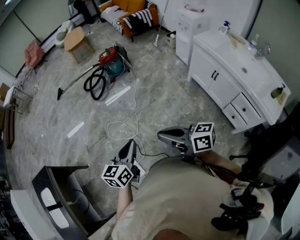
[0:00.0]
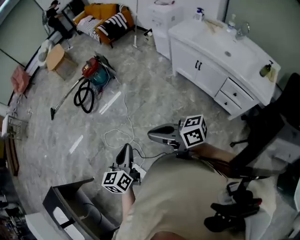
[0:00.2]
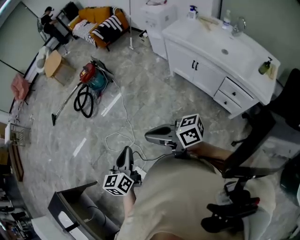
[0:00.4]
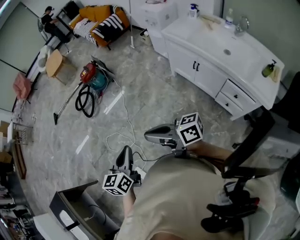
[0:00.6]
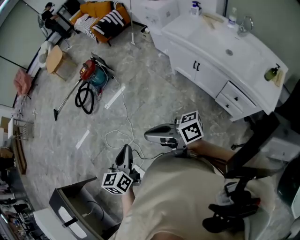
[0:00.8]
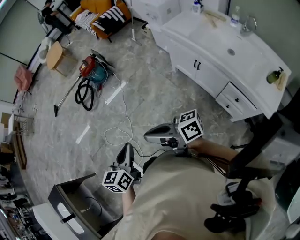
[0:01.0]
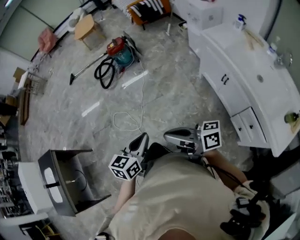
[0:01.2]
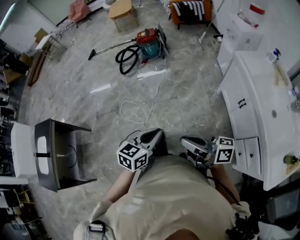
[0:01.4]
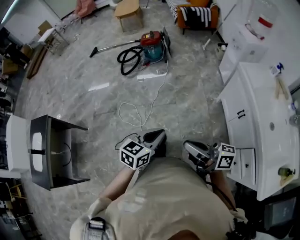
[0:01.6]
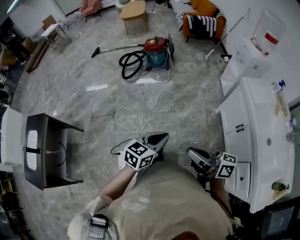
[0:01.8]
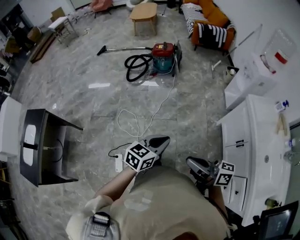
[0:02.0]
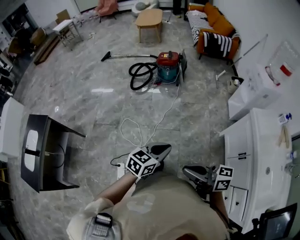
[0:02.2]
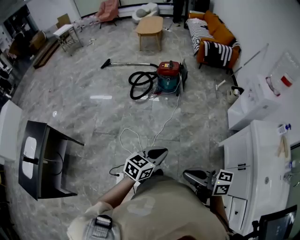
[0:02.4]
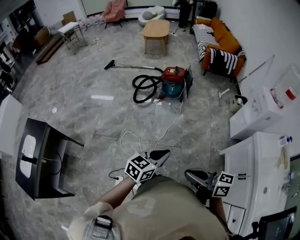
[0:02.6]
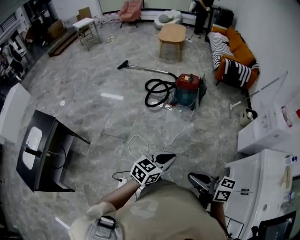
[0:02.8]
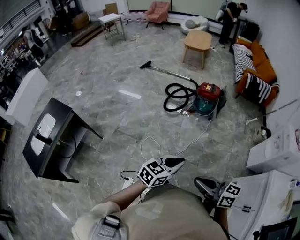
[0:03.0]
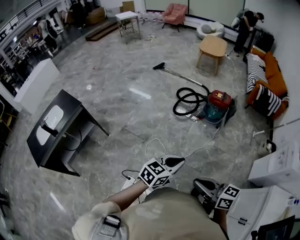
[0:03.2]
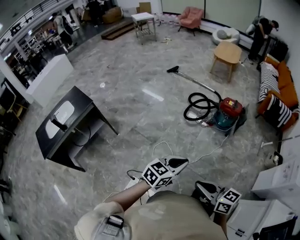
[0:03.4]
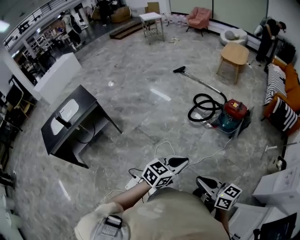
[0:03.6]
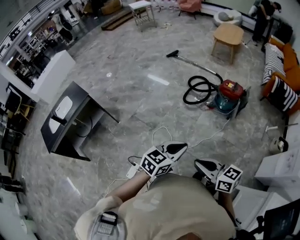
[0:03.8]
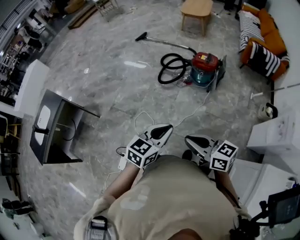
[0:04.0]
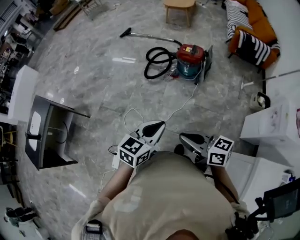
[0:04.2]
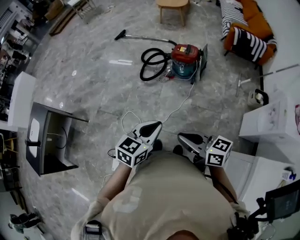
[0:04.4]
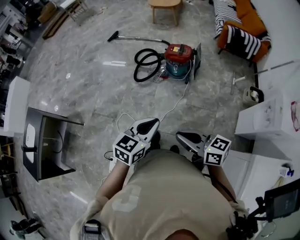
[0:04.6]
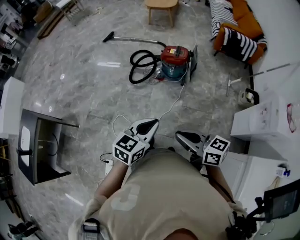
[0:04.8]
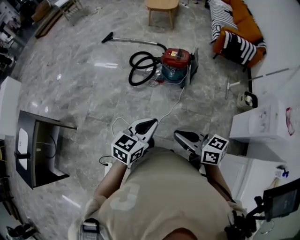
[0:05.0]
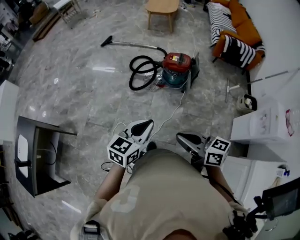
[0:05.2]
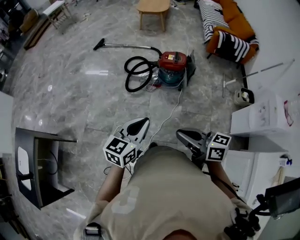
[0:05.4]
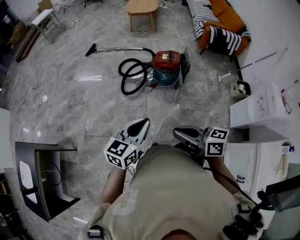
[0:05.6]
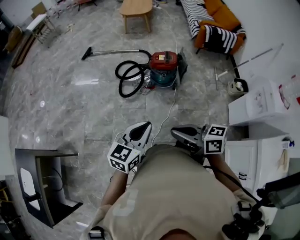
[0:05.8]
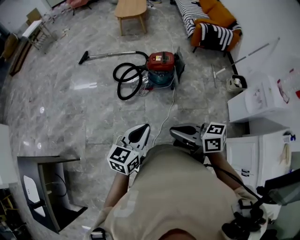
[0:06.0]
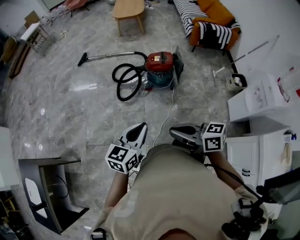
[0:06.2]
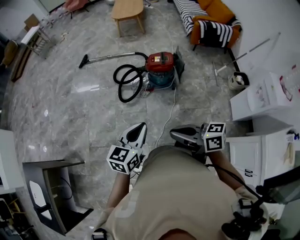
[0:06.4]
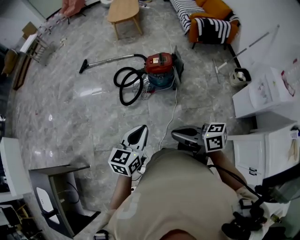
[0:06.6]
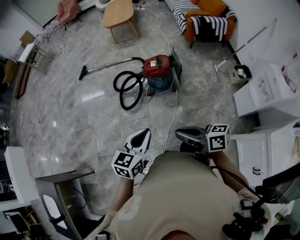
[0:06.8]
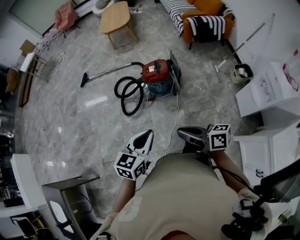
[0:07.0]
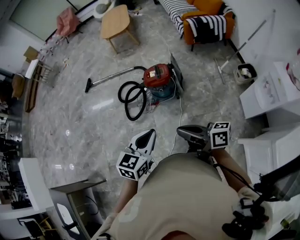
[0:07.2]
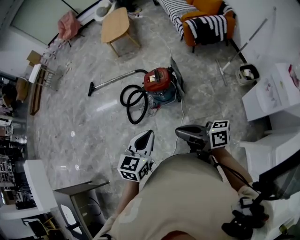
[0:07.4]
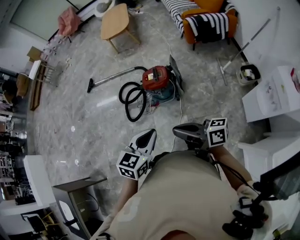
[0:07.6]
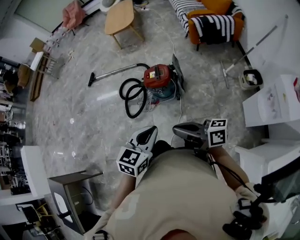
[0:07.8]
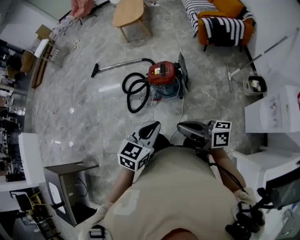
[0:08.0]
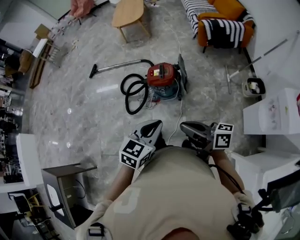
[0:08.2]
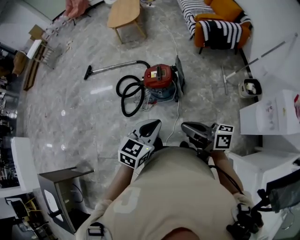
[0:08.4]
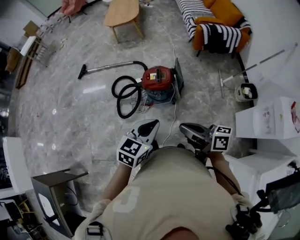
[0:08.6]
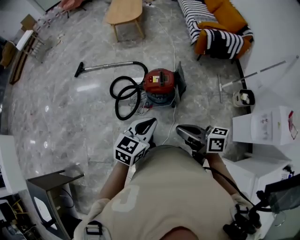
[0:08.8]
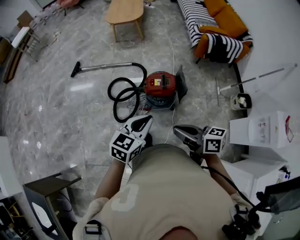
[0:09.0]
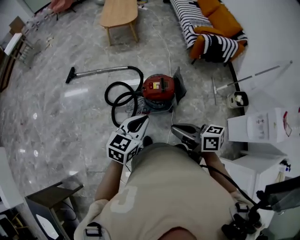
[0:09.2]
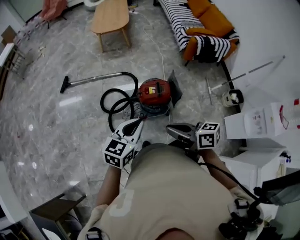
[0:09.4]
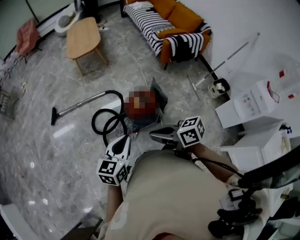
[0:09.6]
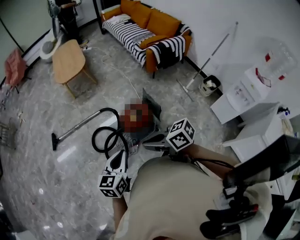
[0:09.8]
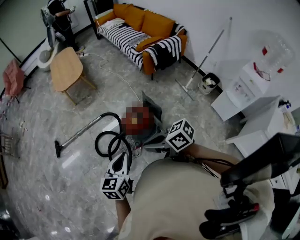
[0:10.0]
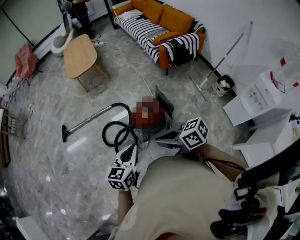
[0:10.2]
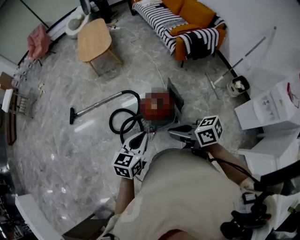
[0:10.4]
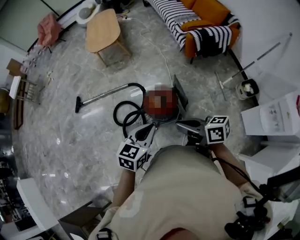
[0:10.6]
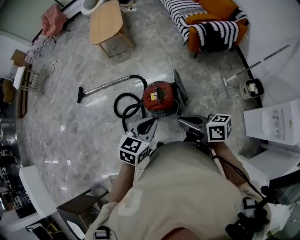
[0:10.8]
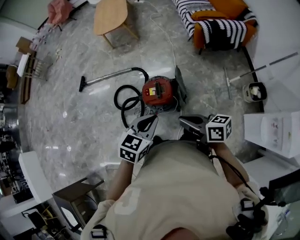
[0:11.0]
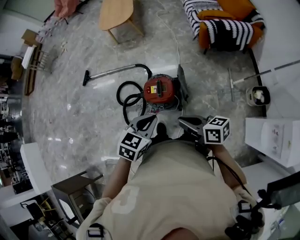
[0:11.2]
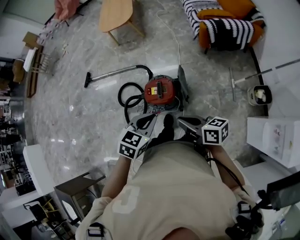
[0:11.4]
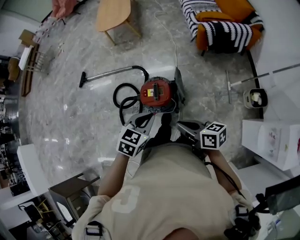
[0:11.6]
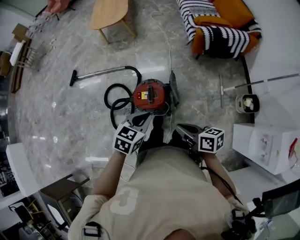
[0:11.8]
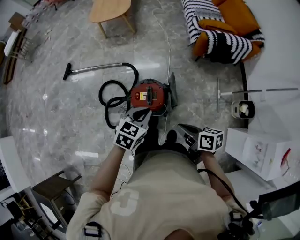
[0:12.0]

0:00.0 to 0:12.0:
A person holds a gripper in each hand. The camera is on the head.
0:00.0 to 0:01.6: The two grippers go roughly 20 cm to the right. The right gripper changes its angle by about 30 degrees.
0:01.6 to 0:03.0: The two grippers go some 30 cm forward and to the left. The right gripper rotates approximately 30 degrees.
0:03.0 to 0:04.4: The grippers both shift to the right and forward by approximately 25 cm.
0:04.4 to 0:06.0: Both grippers move forward and to the left, some 20 cm.
0:06.0 to 0:07.6: Both grippers move to the right and forward, roughly 30 cm. The right gripper turns by roughly 30 degrees.
0:07.6 to 0:09.0: Both grippers move forward and to the left, about 25 cm.
0:09.0 to 0:10.4: Both grippers move forward, roughly 10 cm.
0:10.4 to 0:12.0: The right gripper travels to the right, downward and forward by roughly 25 cm, and swivels about 20 degrees, while the left gripper moves to the right, forward and downward, approximately 25 cm.

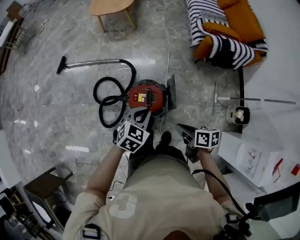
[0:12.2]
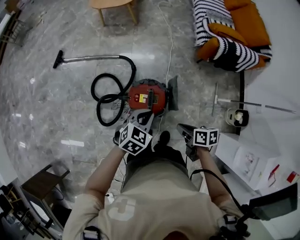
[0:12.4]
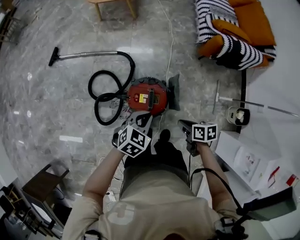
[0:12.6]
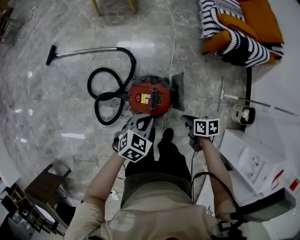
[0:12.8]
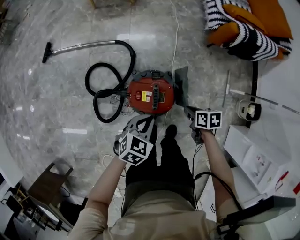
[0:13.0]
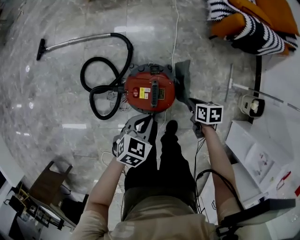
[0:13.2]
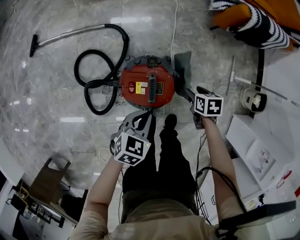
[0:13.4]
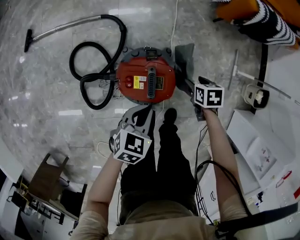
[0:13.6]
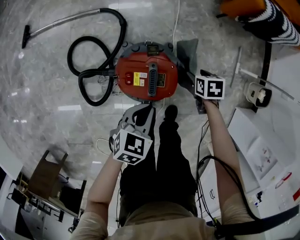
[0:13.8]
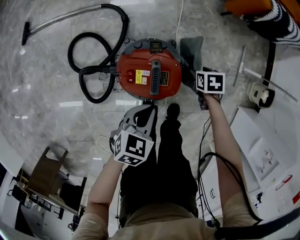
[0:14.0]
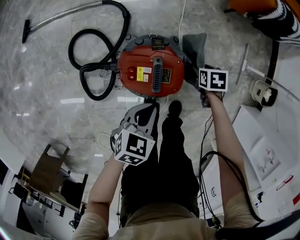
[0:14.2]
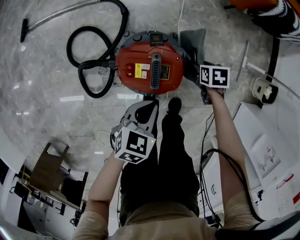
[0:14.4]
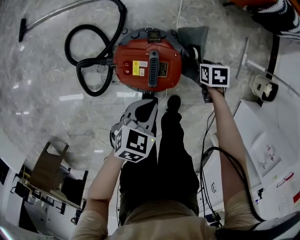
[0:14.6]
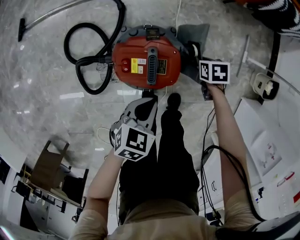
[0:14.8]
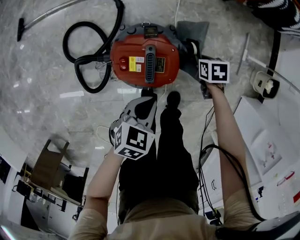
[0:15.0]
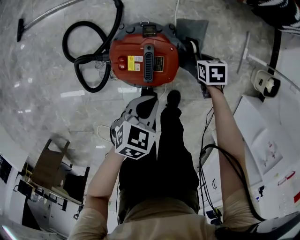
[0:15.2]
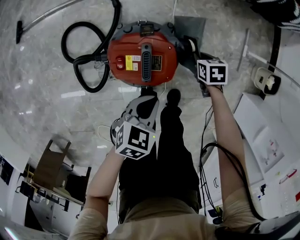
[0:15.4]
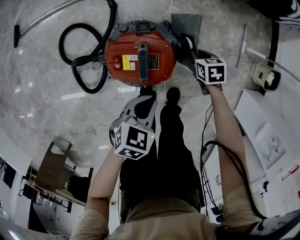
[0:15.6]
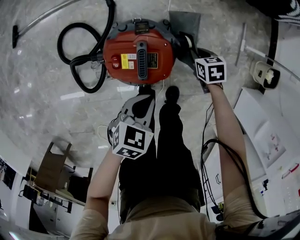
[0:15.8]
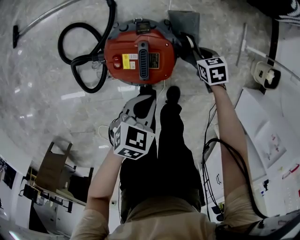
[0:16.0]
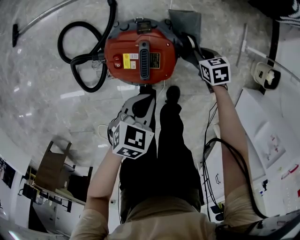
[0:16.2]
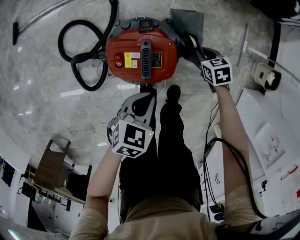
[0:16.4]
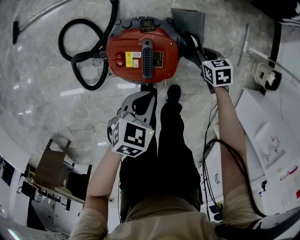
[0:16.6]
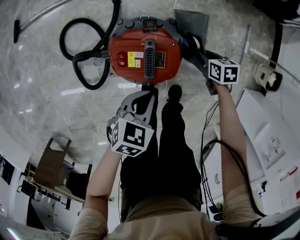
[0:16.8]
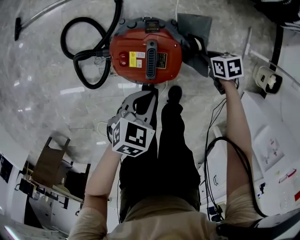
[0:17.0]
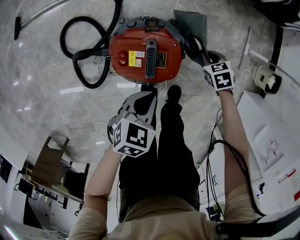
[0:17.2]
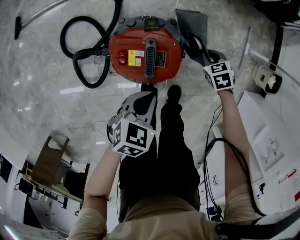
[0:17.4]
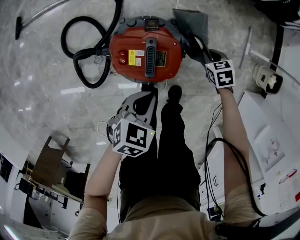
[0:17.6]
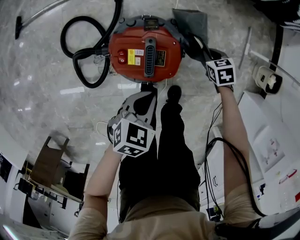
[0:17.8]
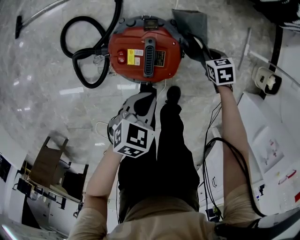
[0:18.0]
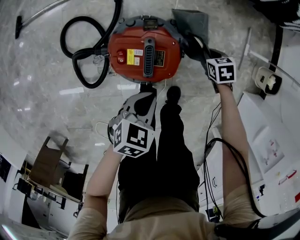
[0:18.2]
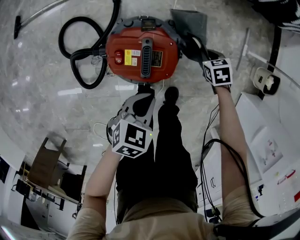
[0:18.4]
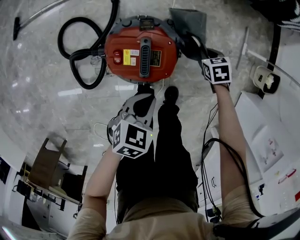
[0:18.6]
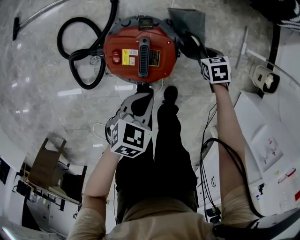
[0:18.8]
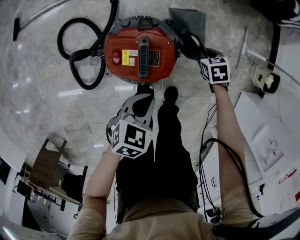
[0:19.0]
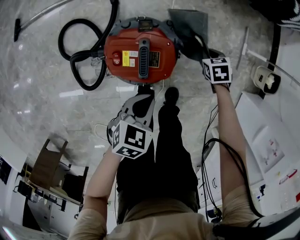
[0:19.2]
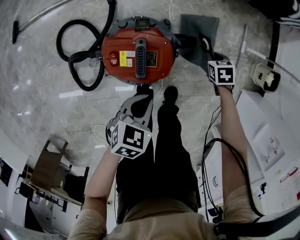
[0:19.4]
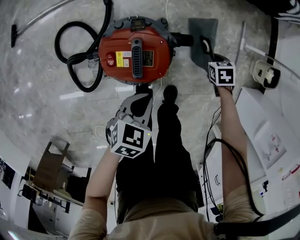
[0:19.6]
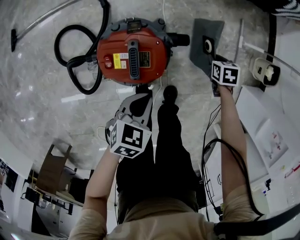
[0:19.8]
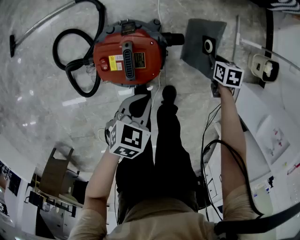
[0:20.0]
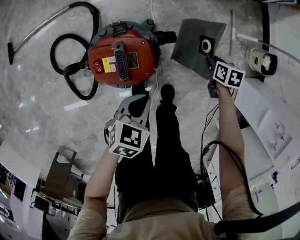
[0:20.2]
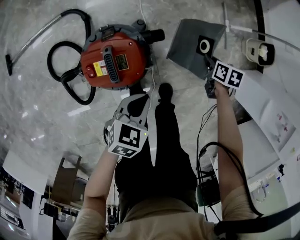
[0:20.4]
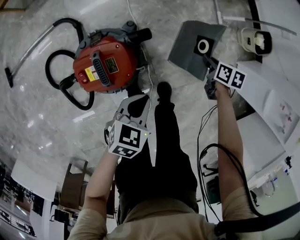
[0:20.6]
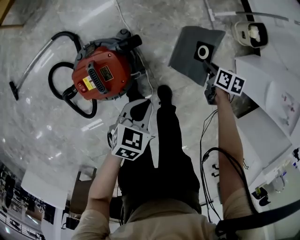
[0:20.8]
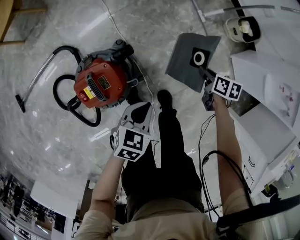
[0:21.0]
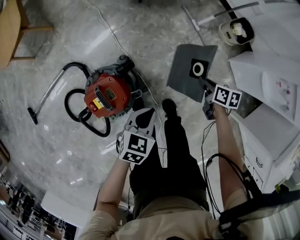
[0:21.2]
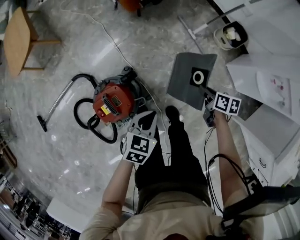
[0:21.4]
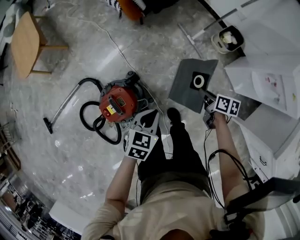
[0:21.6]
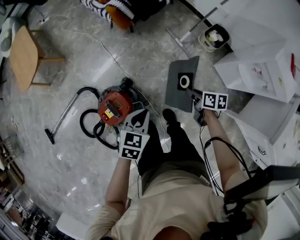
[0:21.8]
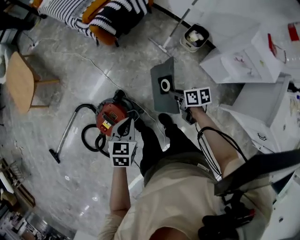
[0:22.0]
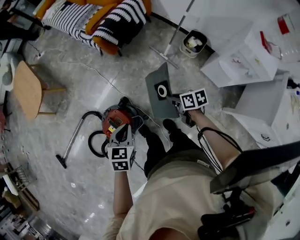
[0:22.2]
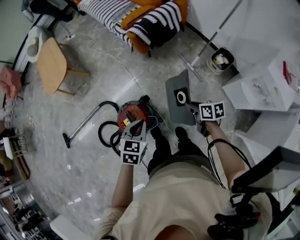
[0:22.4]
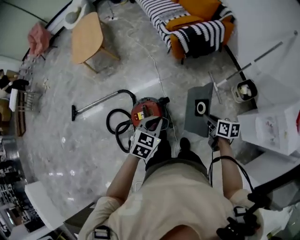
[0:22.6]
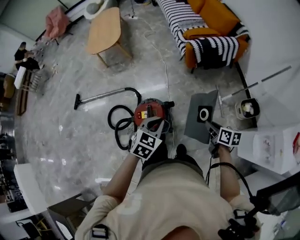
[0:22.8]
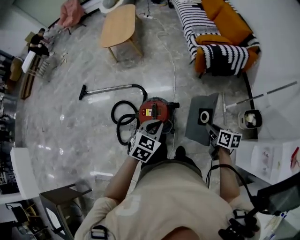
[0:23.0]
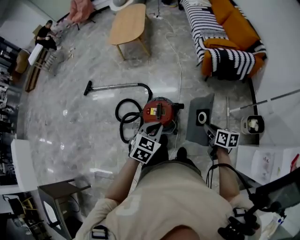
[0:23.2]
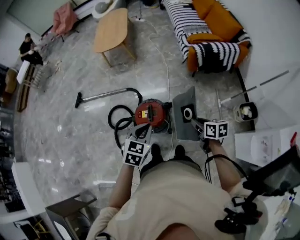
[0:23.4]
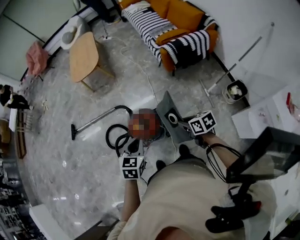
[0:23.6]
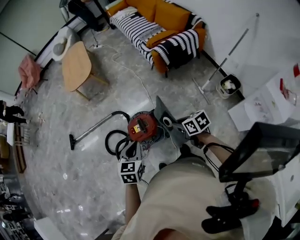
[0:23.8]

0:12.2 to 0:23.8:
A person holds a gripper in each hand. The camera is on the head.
0:12.2 to 0:13.6: The left gripper shifts roughly 25 cm downward. Meanwhile the right gripper heads downward and forward, covering roughly 40 cm, tilts its fingers approximately 40 degrees downward, and opens its fingers.
0:13.6 to 0:15.0: The left gripper moves approximately 5 cm. Meanwhile the right gripper moves downward, about 10 cm, and closes up.
0:15.0 to 0:16.6: The grippers make only small movements.
0:18.0 to 0:19.4: The right gripper ends up some 5 cm from where it was.
0:19.4 to 0:21.0: The right gripper moves some 25 cm, and twists about 60 degrees clockwise, seen from behind; the left gripper shifts by approximately 15 cm, and rotates approximately 20 degrees.
0:21.0 to 0:22.4: Both grippers move upward, roughly 30 cm.
0:22.4 to 0:23.8: The right gripper swings up and down, some 15 cm each way, with 2 reversals, and changes its angle by approximately 30 degrees. Meanwhile the left gripper moves up and down over roughly 10 cm, changing direction 2 times, and rotates roughly 30 degrees.
